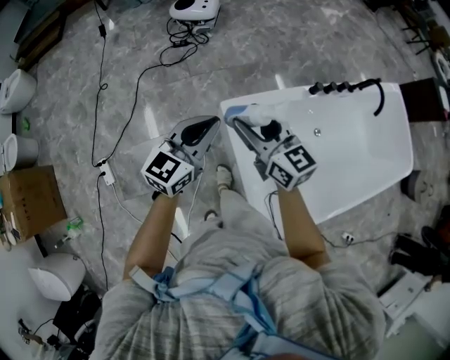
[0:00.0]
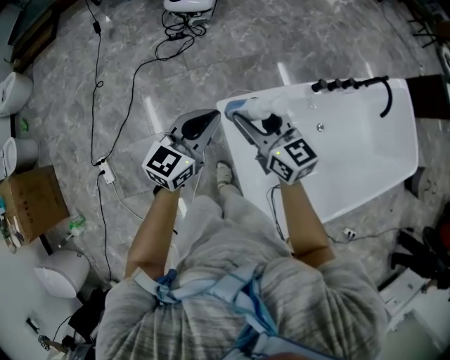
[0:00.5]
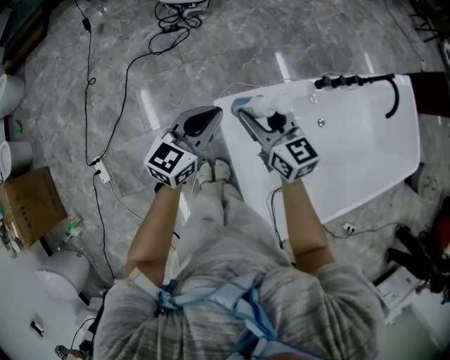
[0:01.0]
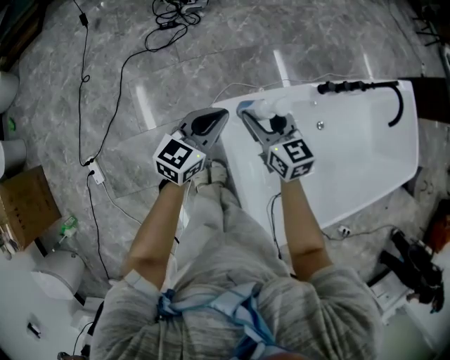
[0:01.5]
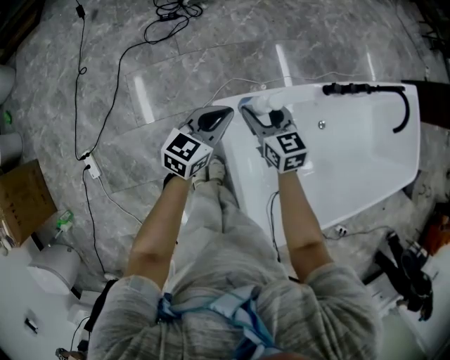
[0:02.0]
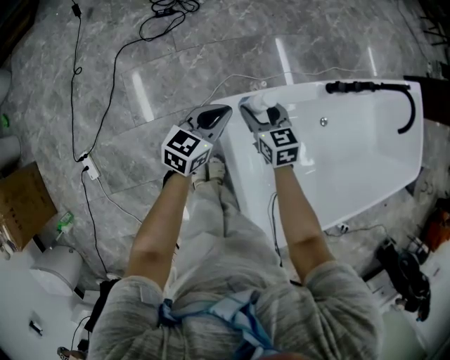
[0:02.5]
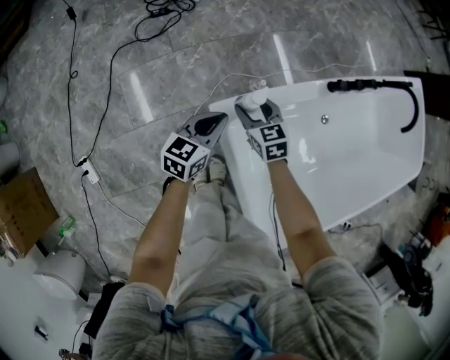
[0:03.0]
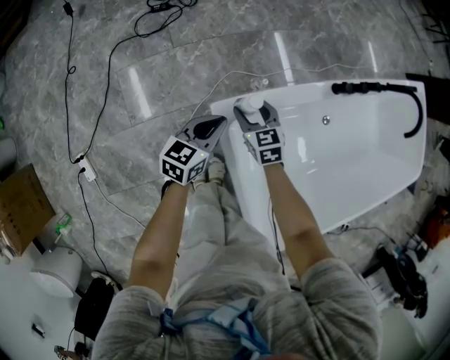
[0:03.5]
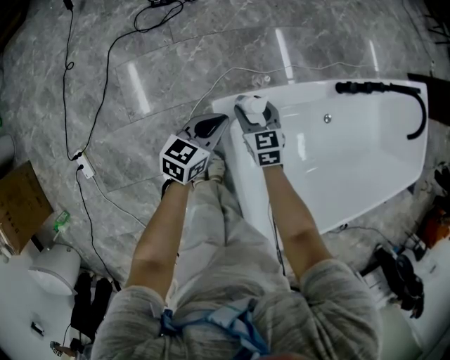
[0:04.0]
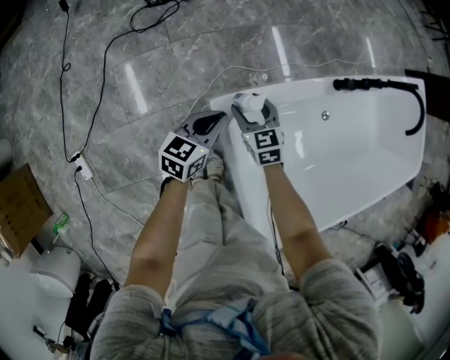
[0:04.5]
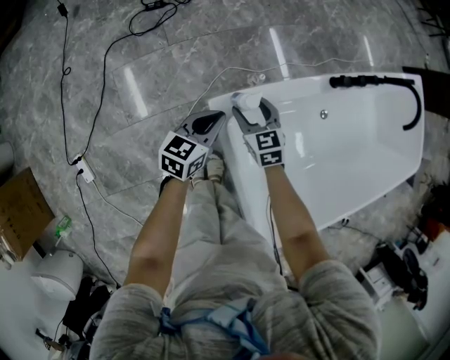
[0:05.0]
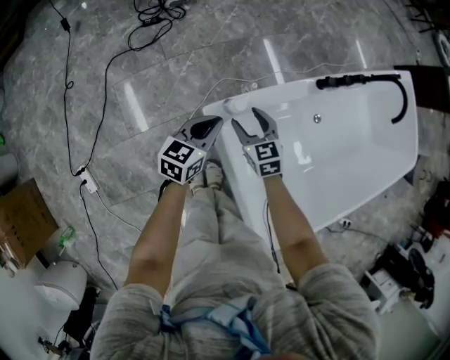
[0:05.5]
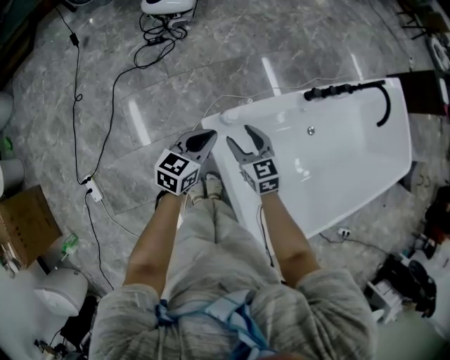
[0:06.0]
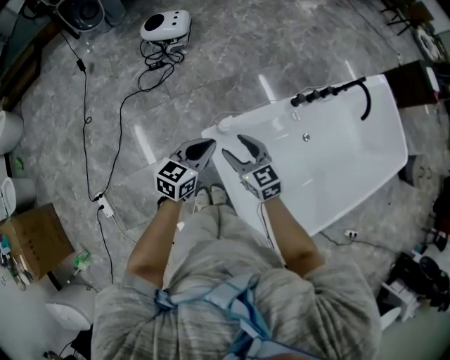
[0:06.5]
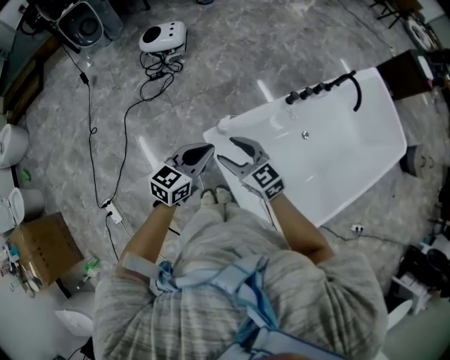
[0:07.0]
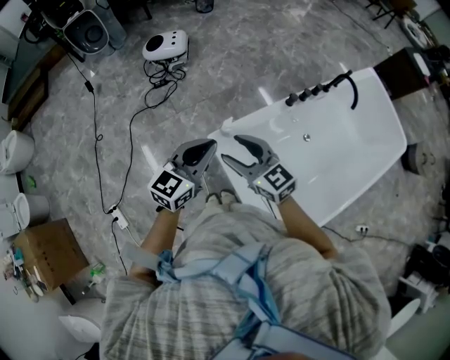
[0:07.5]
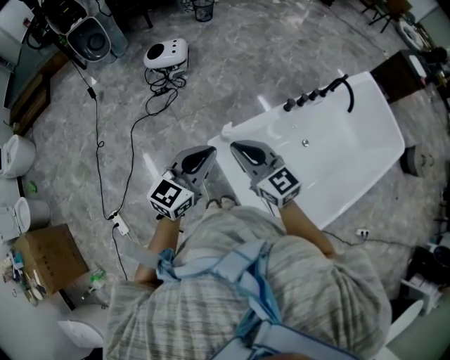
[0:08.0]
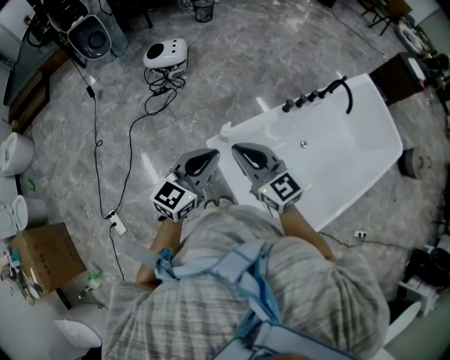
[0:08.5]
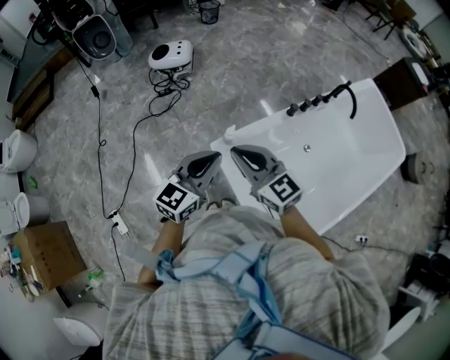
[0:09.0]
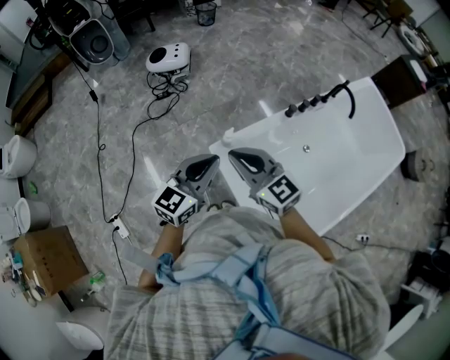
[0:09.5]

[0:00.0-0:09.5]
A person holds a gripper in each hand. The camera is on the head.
0.0 to 2.0 s: The two grippers go approximately 25 cm downward and forward. The right gripper turns by some 20 degrees.
2.0 to 4.0 s: The two grippers go some 15 cm downward.
4.0 to 5.5 s: The right gripper goes approximately 5 cm upward.
5.5 to 7.5 s: The grippers both shift upward by roughly 30 cm. The right gripper turns by about 30 degrees, while the left gripper rotates some 20 degrees.
7.5 to 9.5 s: The right gripper closes.

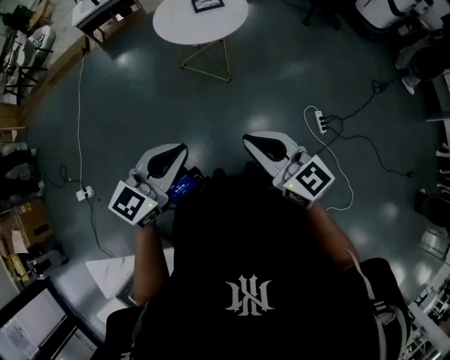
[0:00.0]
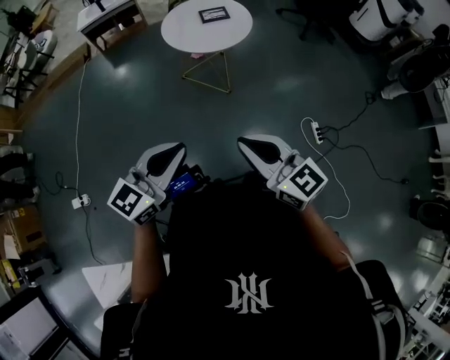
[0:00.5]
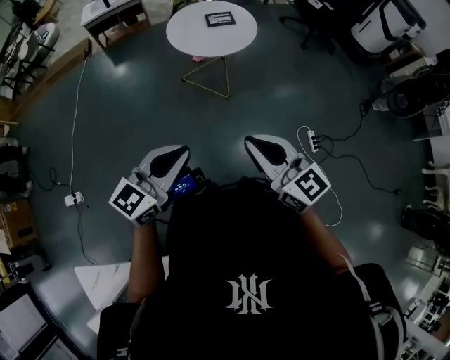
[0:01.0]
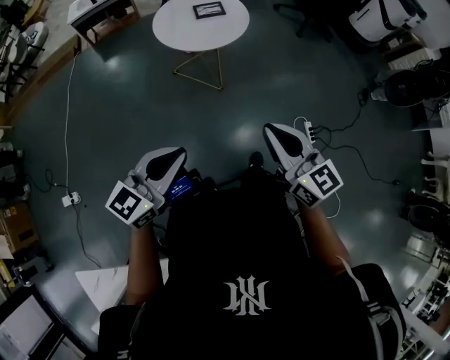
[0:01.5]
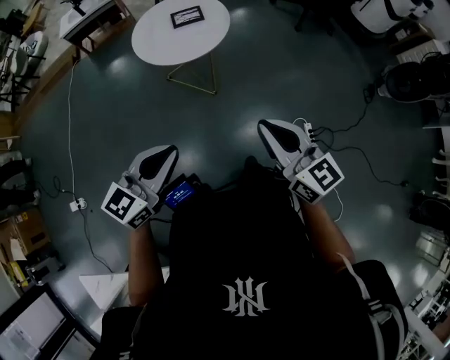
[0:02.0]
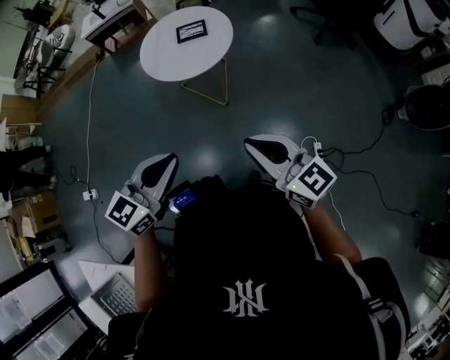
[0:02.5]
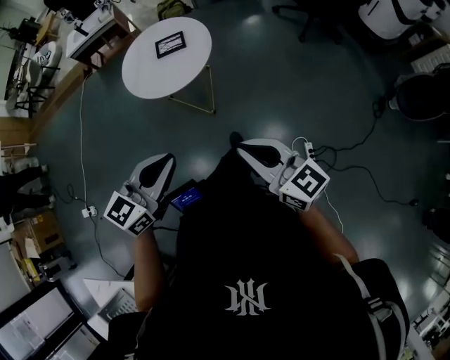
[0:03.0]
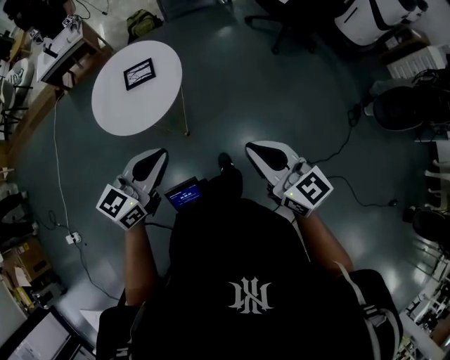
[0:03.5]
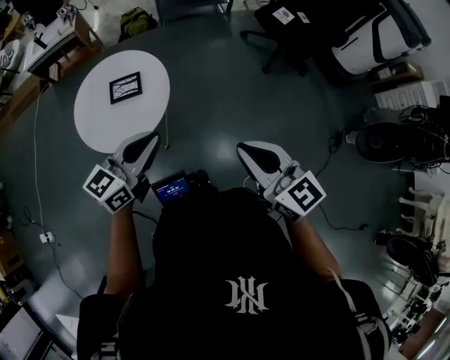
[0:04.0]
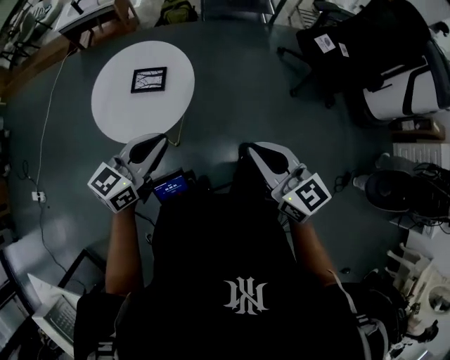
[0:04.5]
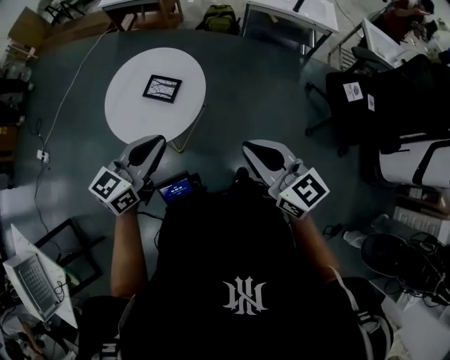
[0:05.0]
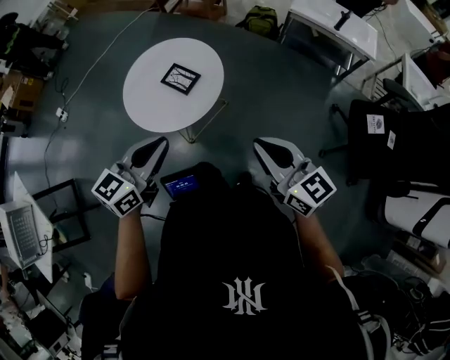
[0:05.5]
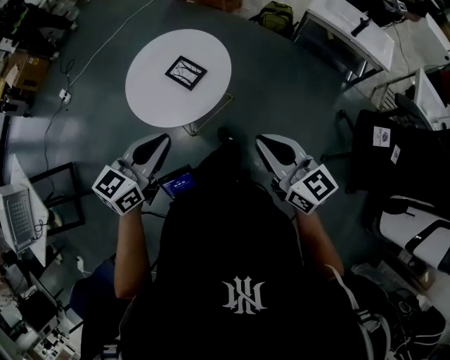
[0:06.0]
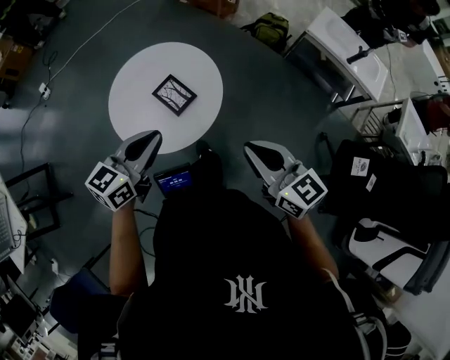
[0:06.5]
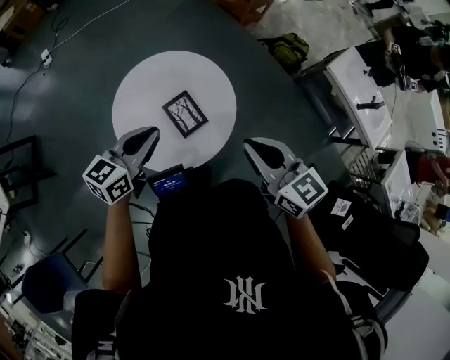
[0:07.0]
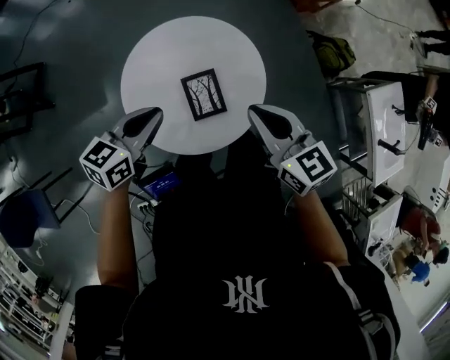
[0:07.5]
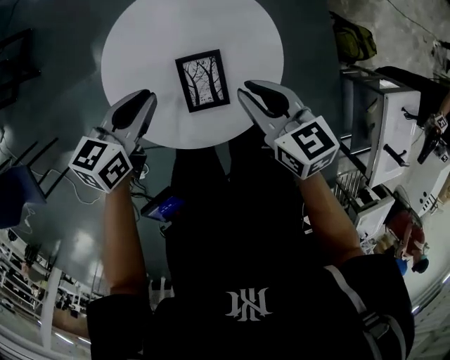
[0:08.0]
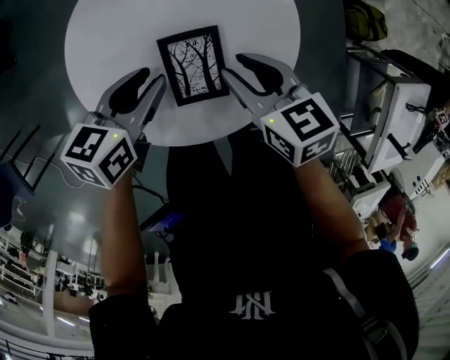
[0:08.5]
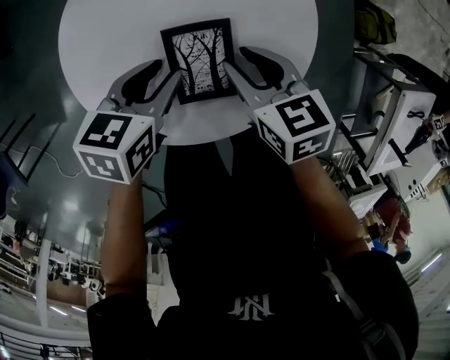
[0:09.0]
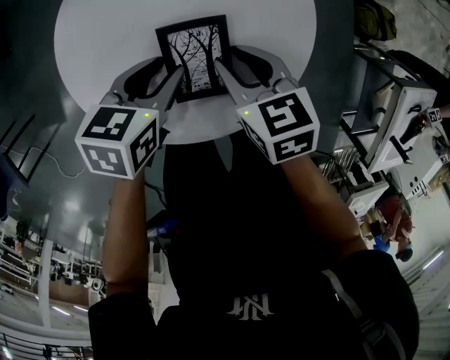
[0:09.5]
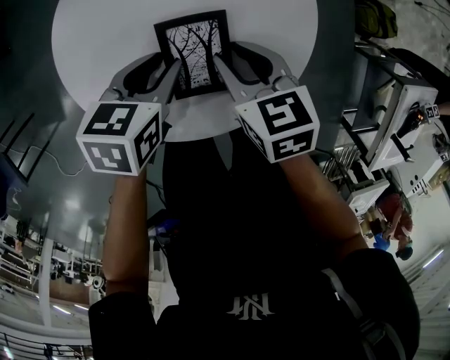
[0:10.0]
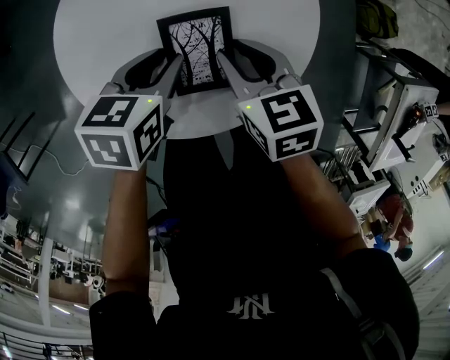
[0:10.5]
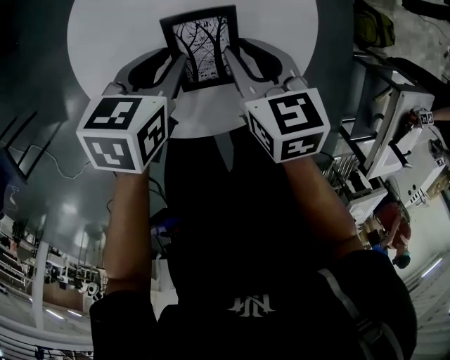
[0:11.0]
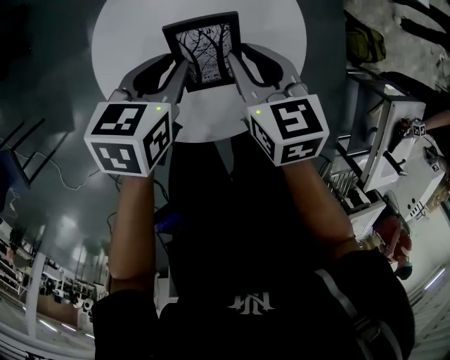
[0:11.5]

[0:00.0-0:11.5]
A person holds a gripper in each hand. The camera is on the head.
0.0 to 2.0 s: The left gripper moves forward and to the right, some 15 cm, while the right gripper heads to the right and forward, covering some 20 cm.
2.0 to 4.0 s: The two grippers travel together, forward and to the right, some 40 cm.
4.0 to 6.0 s: The left gripper changes place by roughly 15 cm, and rotates approximately 50 degrees, while the right gripper ends up about 30 cm from where it was, and rotates about 50 degrees.
6.0 to 7.5 s: The left gripper ends up roughly 35 cm from where it was, and rotates about 40 degrees. Meanwhile the right gripper changes place by about 40 cm, and turns by about 40 degrees.
7.5 to 9.5 s: Both grippers move downward, roughly 25 cm. The left gripper swivels about 30 degrees, and opens. Meanwhile the right gripper changes its angle by some 30 degrees, and opens up.
9.5 to 11.5 s: The two grippers go some 10 cm upward.

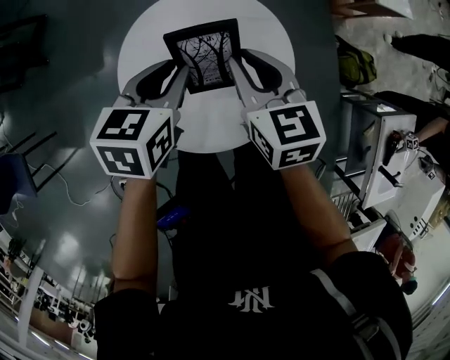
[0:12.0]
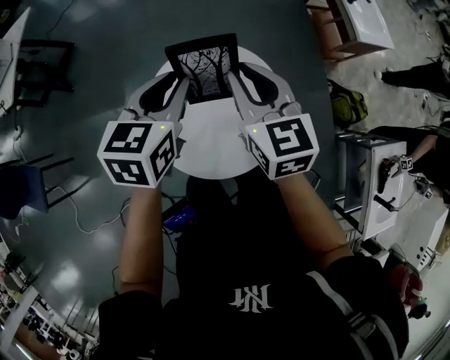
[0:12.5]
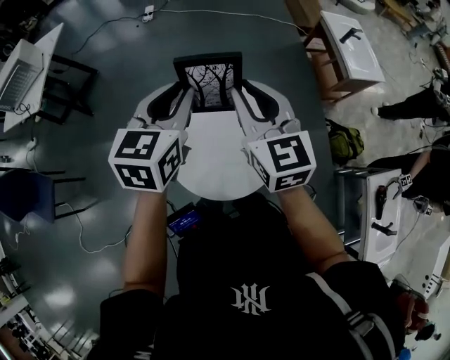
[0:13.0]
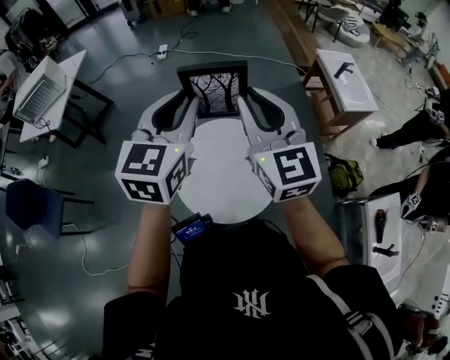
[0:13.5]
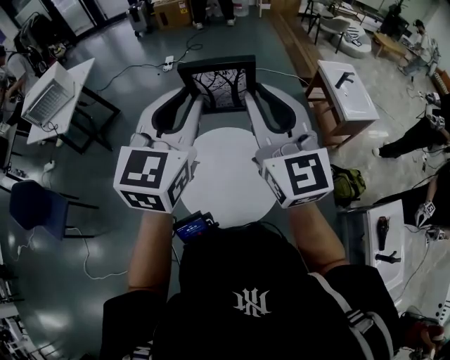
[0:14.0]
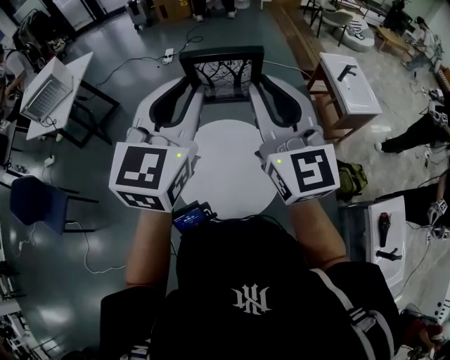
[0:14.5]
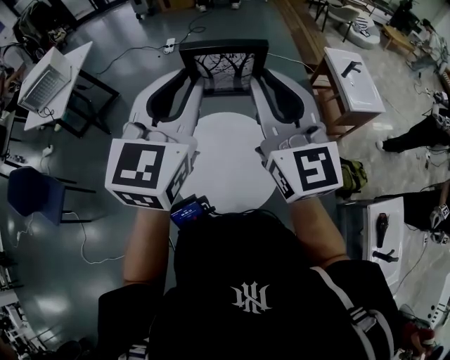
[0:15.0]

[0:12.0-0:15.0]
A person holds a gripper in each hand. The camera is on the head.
12.0 to 13.5 s: Both grippers move upward, approximately 40 cm. The right gripper angles its fingers upward, by some 40 degrees. The left gripper points its fingers some 30 degrees further upward.
13.5 to 15.0 s: The left gripper heads upward, covering about 5 cm. The right gripper changes place by about 5 cm.

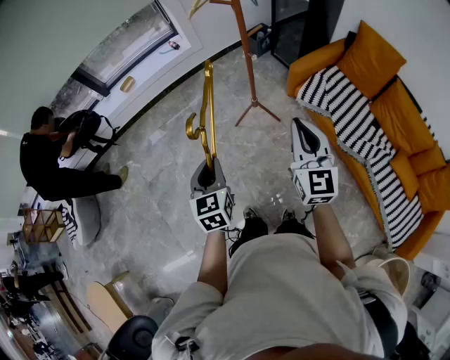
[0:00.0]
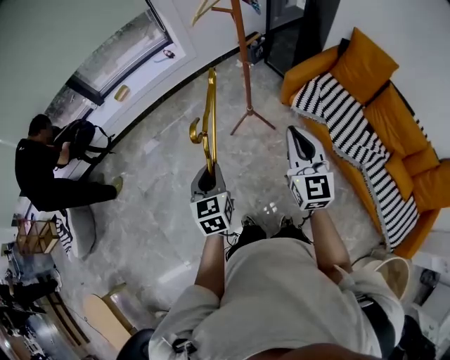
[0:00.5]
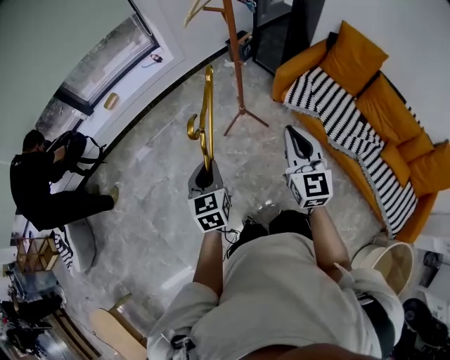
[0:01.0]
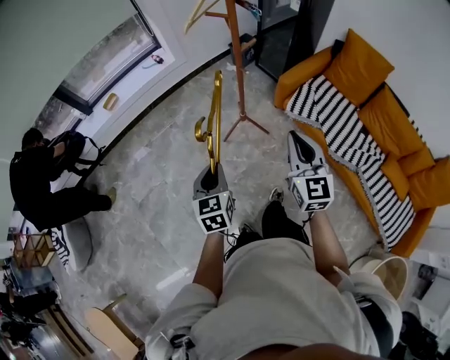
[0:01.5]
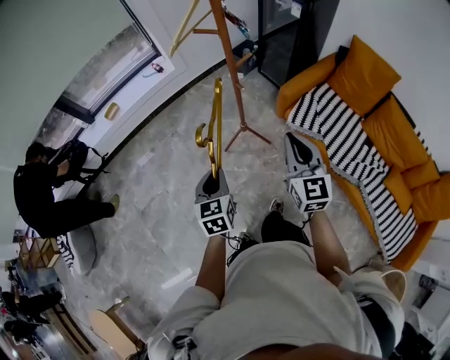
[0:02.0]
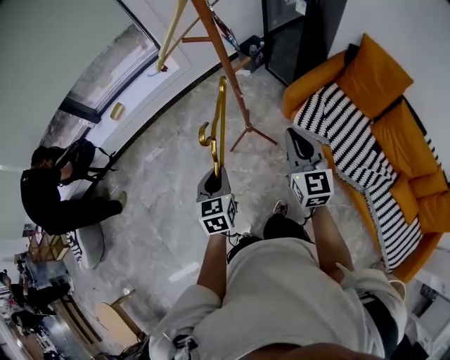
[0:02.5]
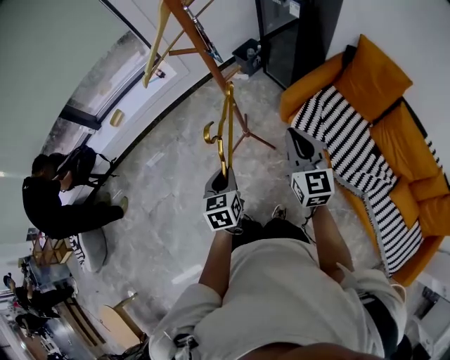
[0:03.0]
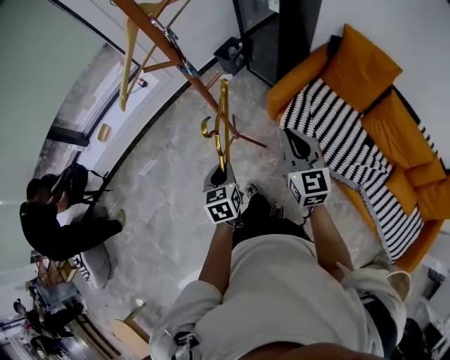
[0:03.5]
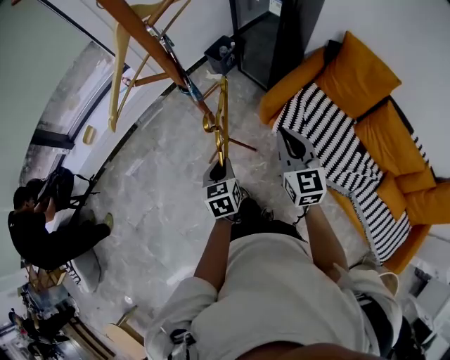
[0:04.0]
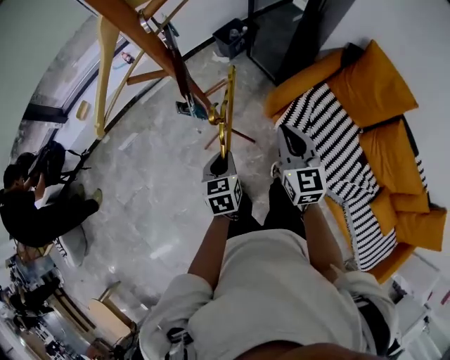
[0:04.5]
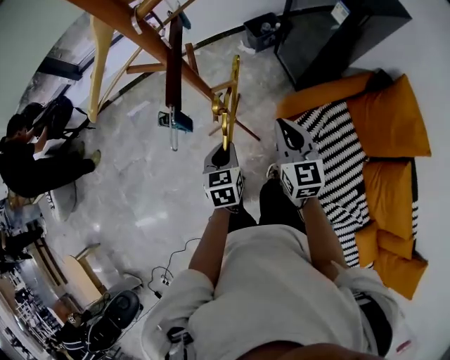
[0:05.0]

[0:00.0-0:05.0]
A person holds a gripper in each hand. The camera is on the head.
0.0 to 2.5 s: The left gripper moves forward and to the right, approximately 20 cm. Meanwhile the right gripper moves forward, about 20 cm.
2.5 to 5.0 s: The left gripper moves forward and to the right, approximately 30 cm; the right gripper goes approximately 30 cm forward, and swivels roughly 20 degrees.
